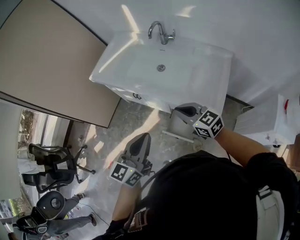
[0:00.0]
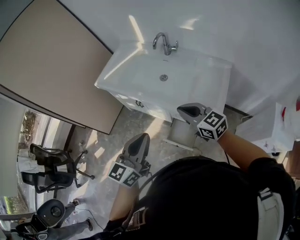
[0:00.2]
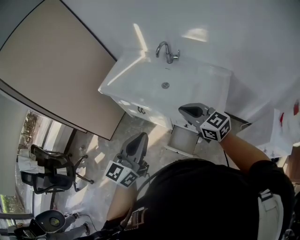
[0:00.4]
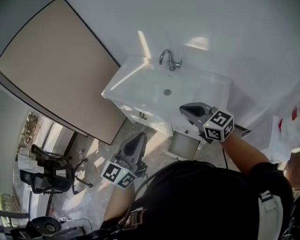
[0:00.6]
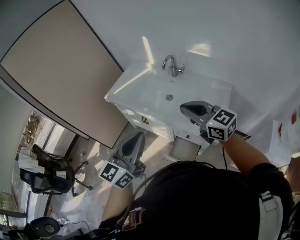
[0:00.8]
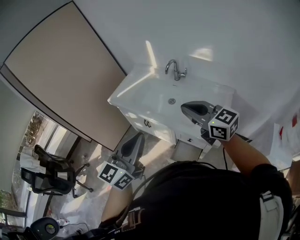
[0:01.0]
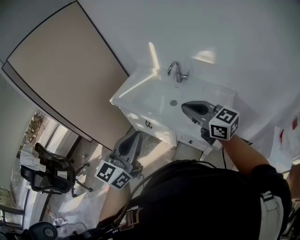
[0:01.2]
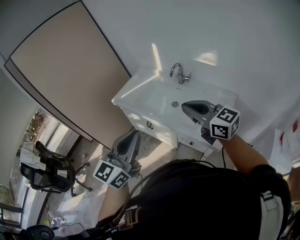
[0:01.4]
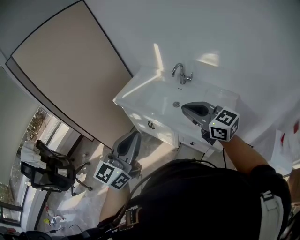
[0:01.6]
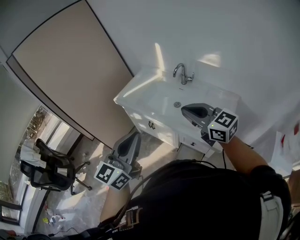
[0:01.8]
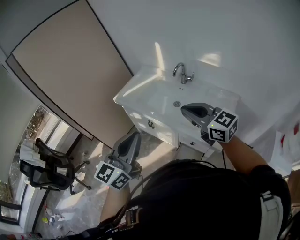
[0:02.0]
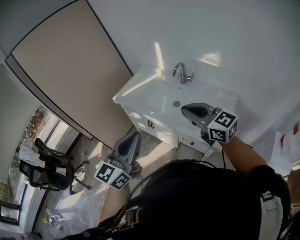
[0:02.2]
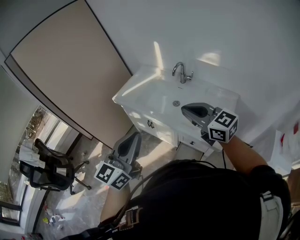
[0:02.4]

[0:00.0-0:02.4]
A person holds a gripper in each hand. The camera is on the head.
0:00.0 to 0:01.2: Both grippers move upward, approximately 20 cm.
0:01.2 to 0:02.4: The grippers move only a little.

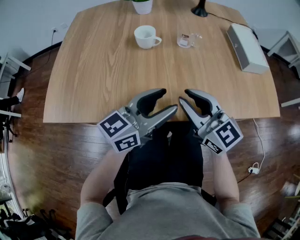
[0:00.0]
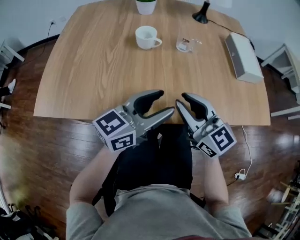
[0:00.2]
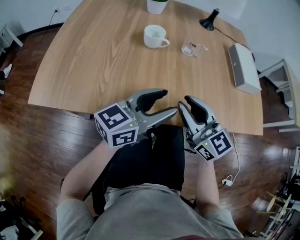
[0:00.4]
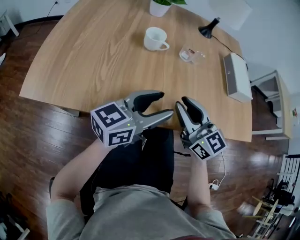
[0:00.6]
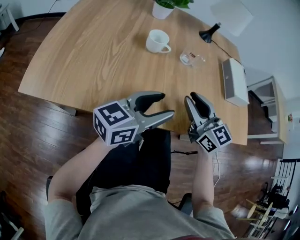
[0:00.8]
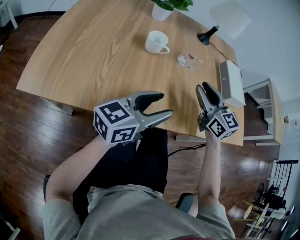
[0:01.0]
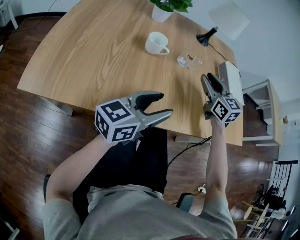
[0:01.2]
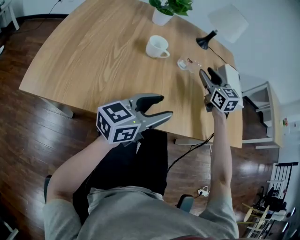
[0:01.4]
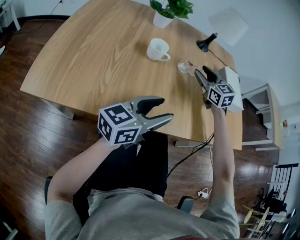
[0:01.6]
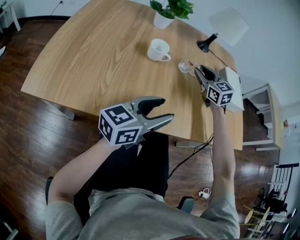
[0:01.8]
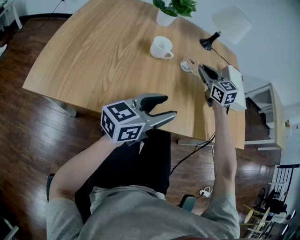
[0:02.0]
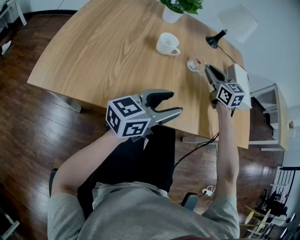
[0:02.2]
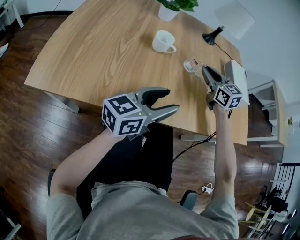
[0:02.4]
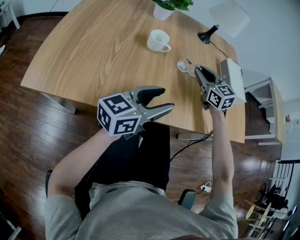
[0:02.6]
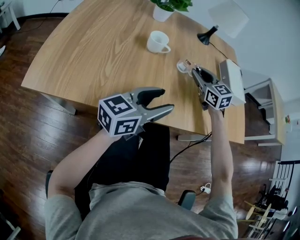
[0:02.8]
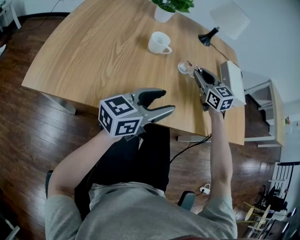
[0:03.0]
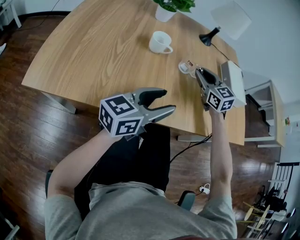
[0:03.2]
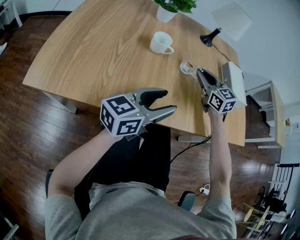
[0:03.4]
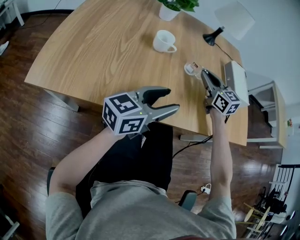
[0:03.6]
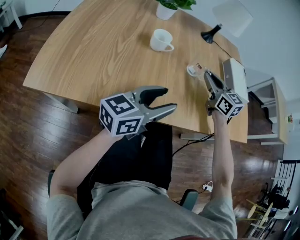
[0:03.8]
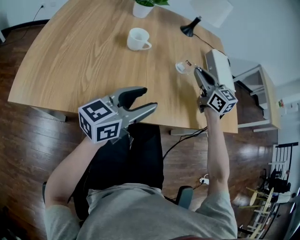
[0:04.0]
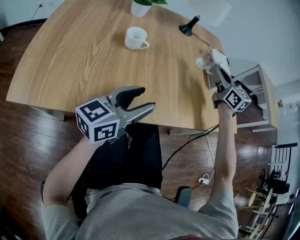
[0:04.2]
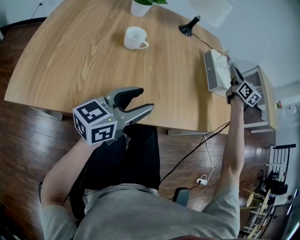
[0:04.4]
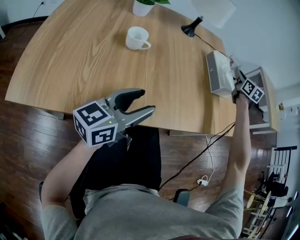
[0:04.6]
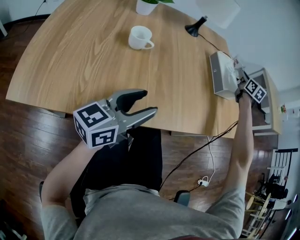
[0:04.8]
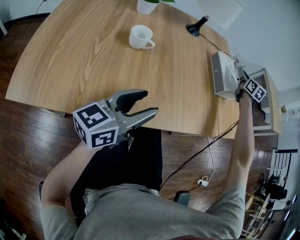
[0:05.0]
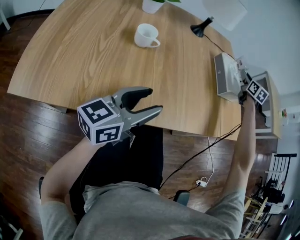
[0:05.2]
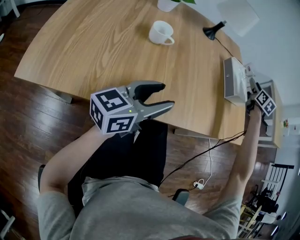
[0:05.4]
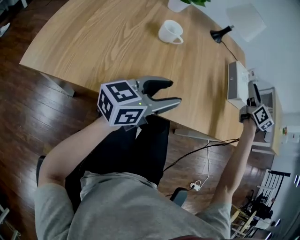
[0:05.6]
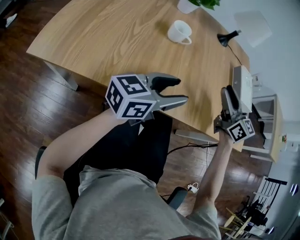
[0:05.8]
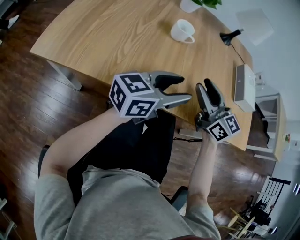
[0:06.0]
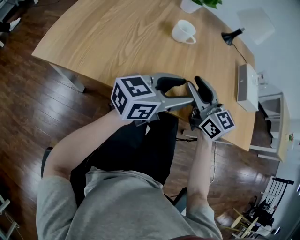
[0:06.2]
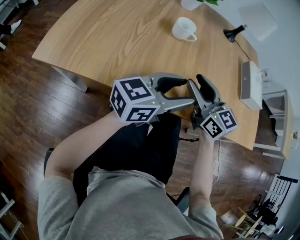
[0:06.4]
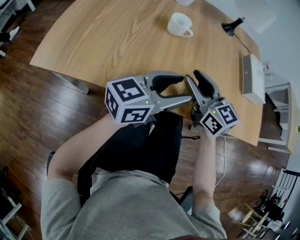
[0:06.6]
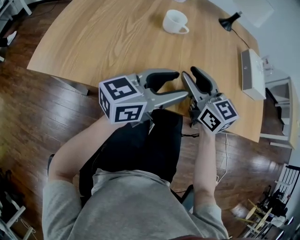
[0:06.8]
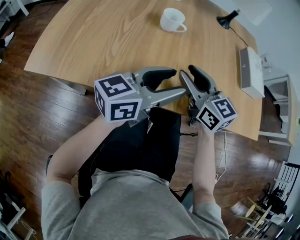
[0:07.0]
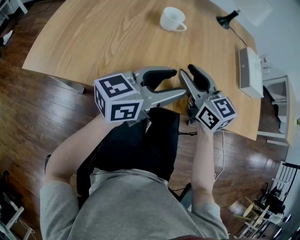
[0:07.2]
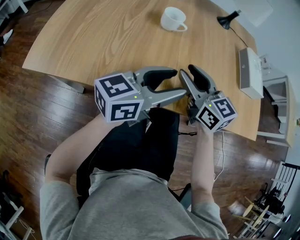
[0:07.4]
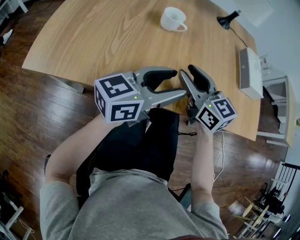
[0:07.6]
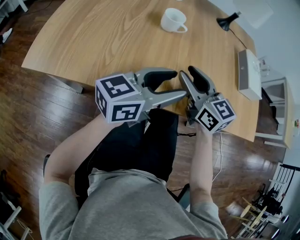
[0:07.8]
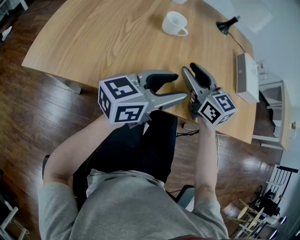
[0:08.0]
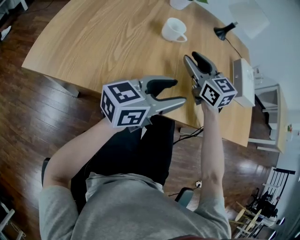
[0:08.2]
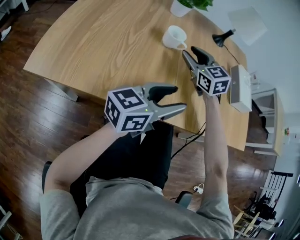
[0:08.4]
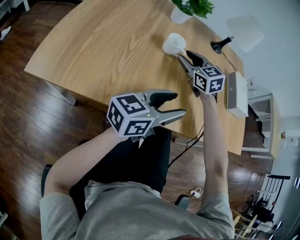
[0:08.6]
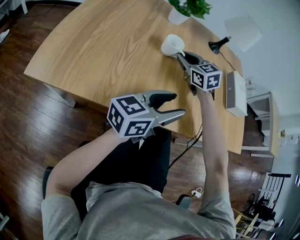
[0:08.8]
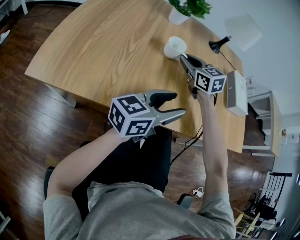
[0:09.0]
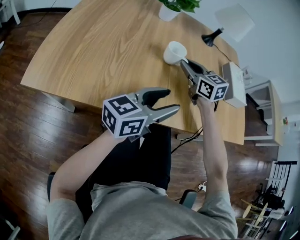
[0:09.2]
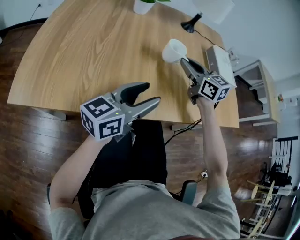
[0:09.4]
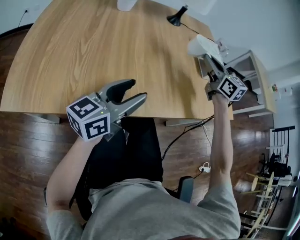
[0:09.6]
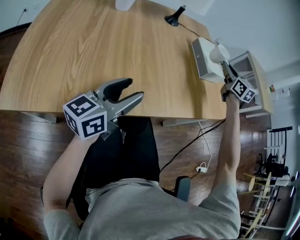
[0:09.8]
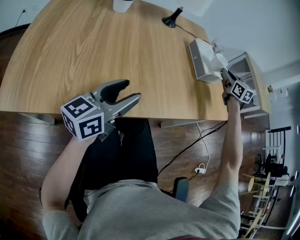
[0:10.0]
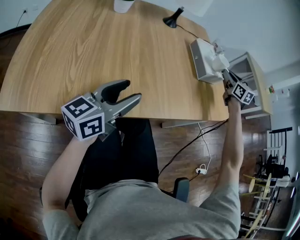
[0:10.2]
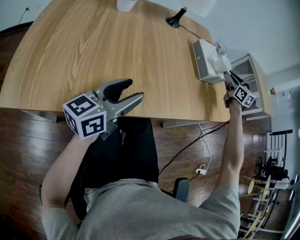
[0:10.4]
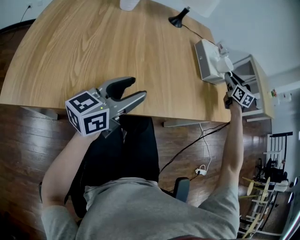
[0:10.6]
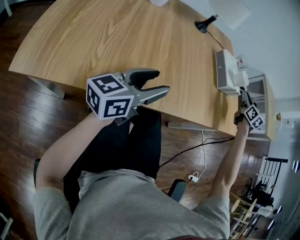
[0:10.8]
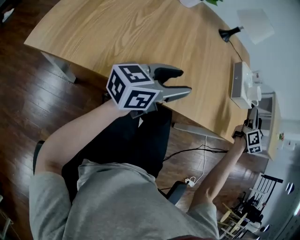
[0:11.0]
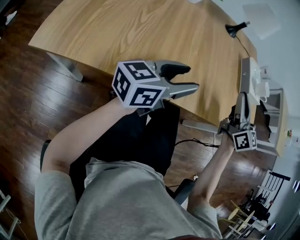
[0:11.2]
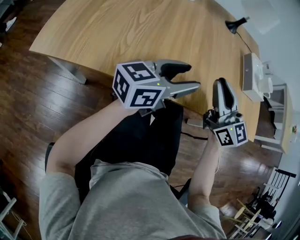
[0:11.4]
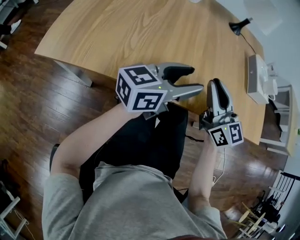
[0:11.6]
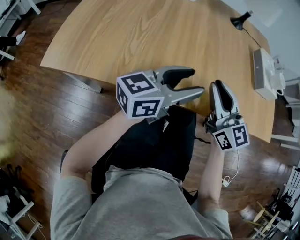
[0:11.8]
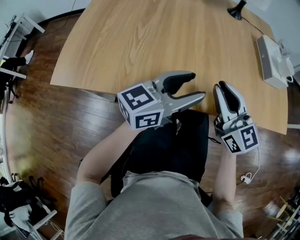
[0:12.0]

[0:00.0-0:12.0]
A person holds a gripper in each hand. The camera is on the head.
0:00.0 to 0:01.6: The right gripper travels forward by about 25 cm, changes its angle by approximately 20 degrees, and opens its fingers.
0:01.6 to 0:03.0: The right gripper closes.
0:03.0 to 0:04.4: The right gripper moves to the right and upward, roughly 25 cm, and swivels some 30 degrees.
0:04.4 to 0:06.0: The right gripper shifts by approximately 40 cm, turns by roughly 40 degrees, and opens its fingers.
0:06.0 to 0:07.6: The right gripper ends up approximately 5 cm from where it was.
0:07.6 to 0:09.0: The right gripper moves forward, about 15 cm, and closes.
0:09.0 to 0:10.4: The right gripper travels to the right by about 50 cm, and changes its angle by roughly 40 degrees.
0:10.4 to 0:12.0: The right gripper shifts roughly 40 cm to the left and backward, and swivels approximately 40 degrees.

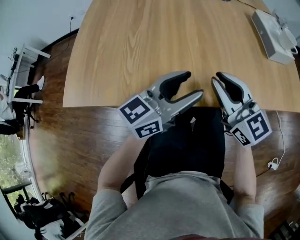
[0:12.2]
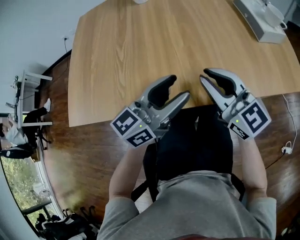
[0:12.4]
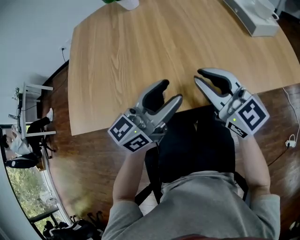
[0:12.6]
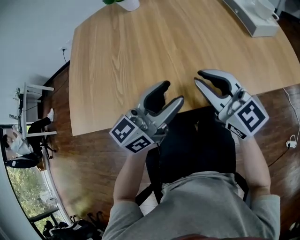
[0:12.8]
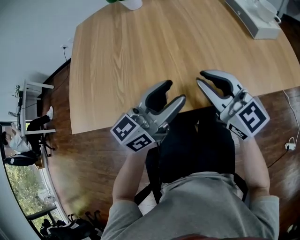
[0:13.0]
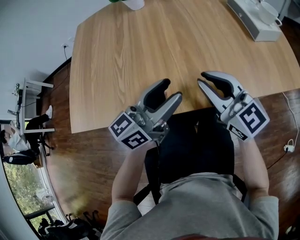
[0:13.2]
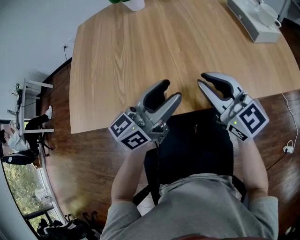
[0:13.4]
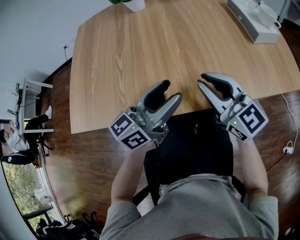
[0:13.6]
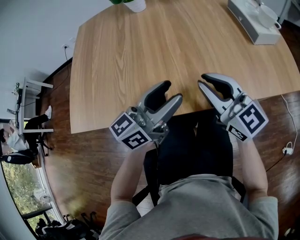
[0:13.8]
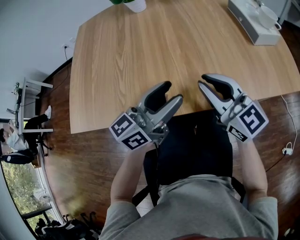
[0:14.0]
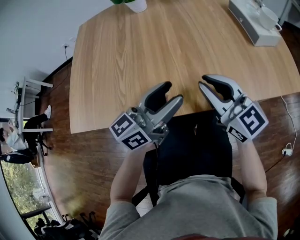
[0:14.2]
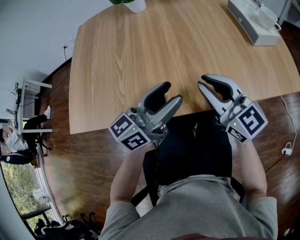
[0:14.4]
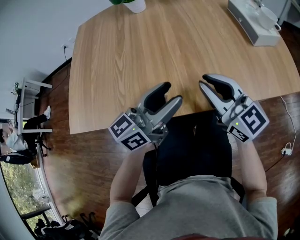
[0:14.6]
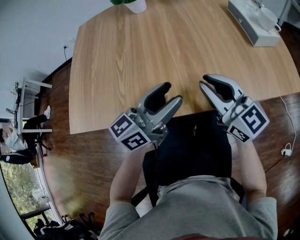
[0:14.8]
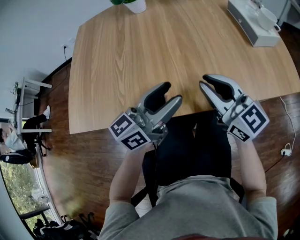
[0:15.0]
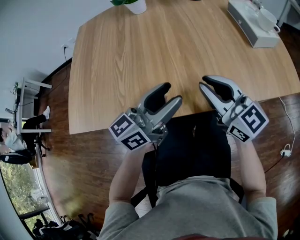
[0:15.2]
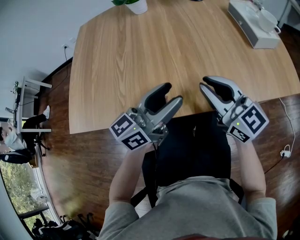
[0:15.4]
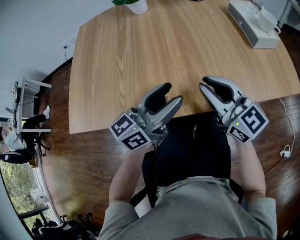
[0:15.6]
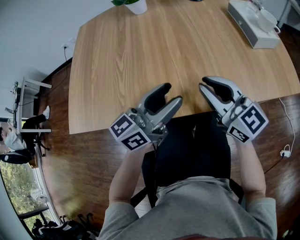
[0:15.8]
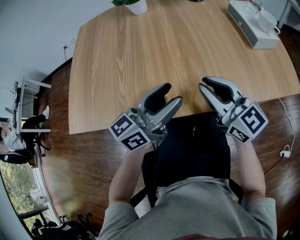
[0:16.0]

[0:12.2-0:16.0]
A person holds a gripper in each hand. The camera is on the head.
0:12.2 to 0:13.4: The grippers move only a little.
0:13.4 to 0:16.0: The two grippers keep their place.

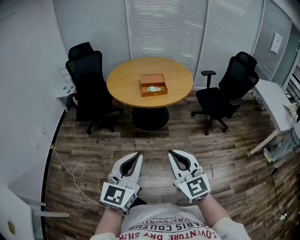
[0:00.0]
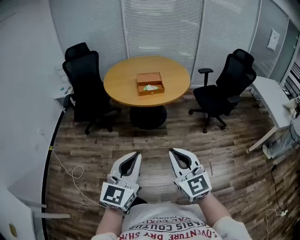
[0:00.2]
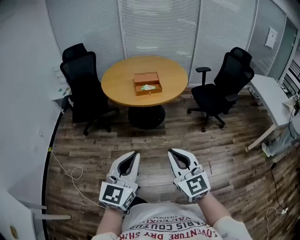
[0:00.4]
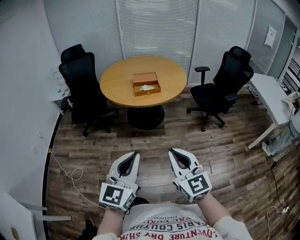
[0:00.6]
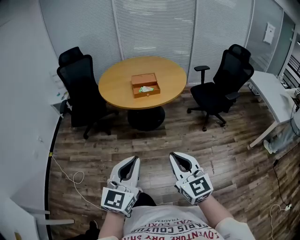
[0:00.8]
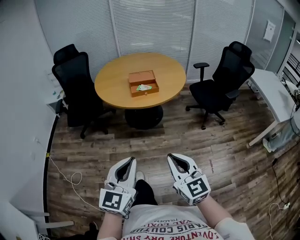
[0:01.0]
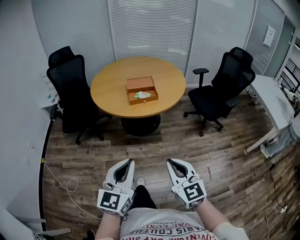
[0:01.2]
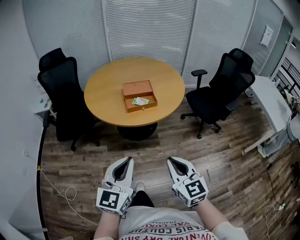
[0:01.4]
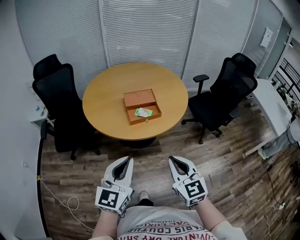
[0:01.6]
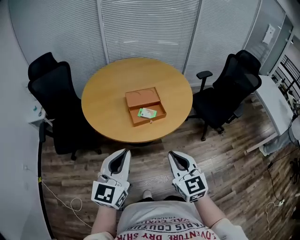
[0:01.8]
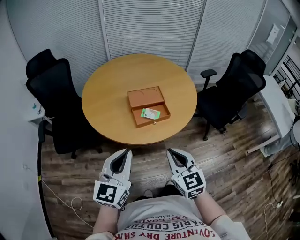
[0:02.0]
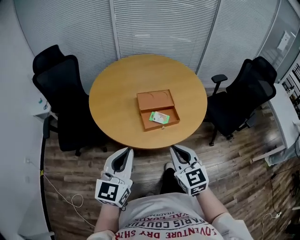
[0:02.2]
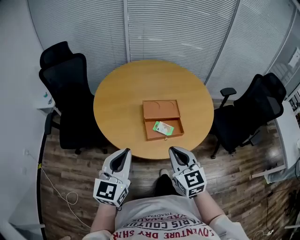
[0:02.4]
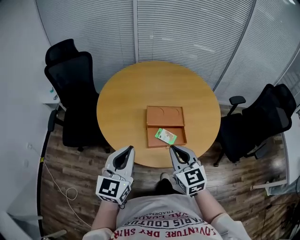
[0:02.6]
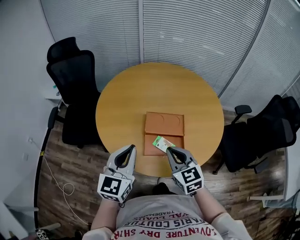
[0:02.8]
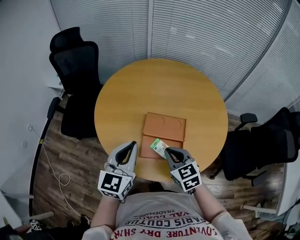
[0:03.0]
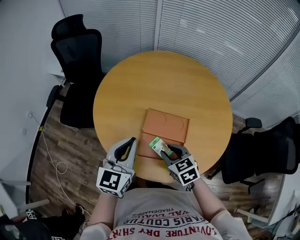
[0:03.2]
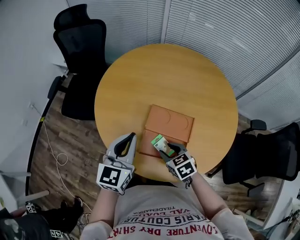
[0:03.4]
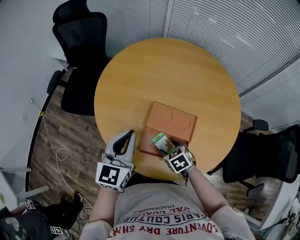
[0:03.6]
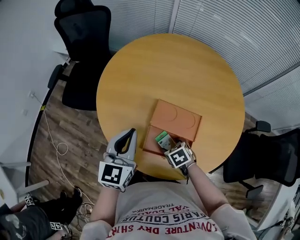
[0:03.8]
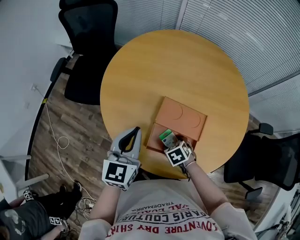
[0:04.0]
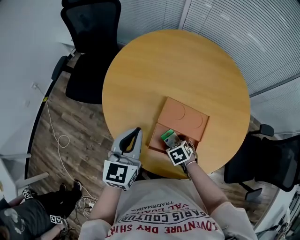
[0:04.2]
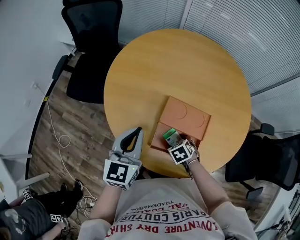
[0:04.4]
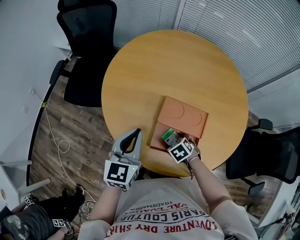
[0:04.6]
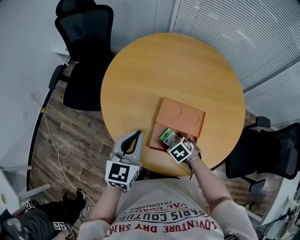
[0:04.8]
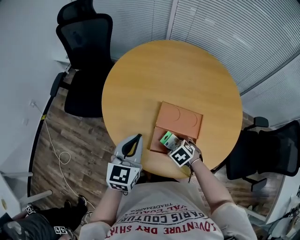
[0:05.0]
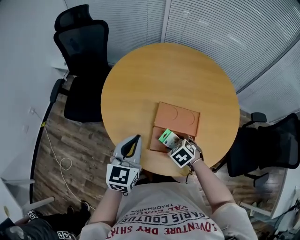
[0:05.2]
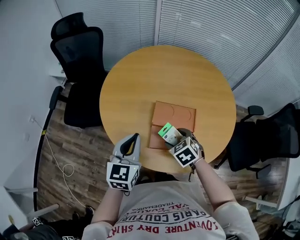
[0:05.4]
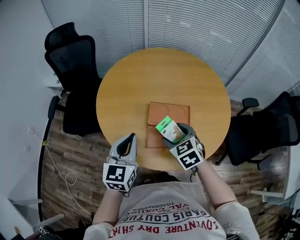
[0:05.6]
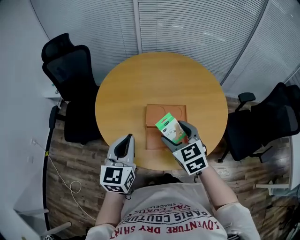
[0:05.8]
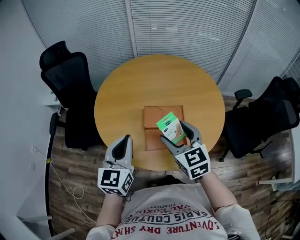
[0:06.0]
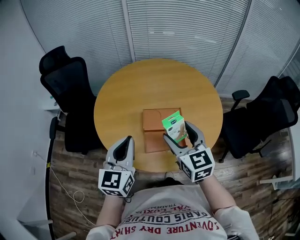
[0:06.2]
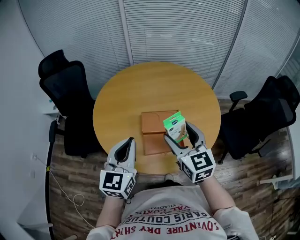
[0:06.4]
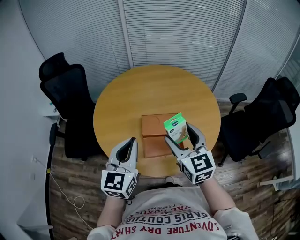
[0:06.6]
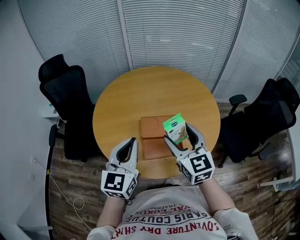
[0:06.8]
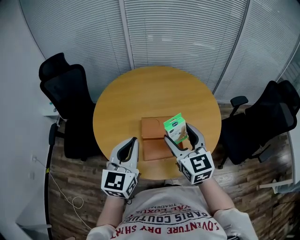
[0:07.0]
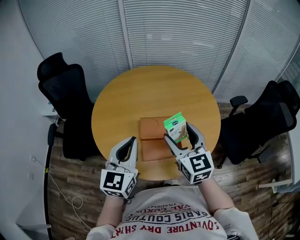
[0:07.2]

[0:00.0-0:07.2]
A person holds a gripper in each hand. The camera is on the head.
0:00.0 to 0:01.4: Both grippers travel together forward, some 25 cm.
0:01.4 to 0:02.8: The pair of grippers is taken forward, approximately 50 cm. The right gripper changes its angle by approximately 20 degrees.
0:02.8 to 0:04.4: The left gripper changes place by roughly 15 cm, and changes its angle by some 20 degrees. Meanwhile the right gripper shifts roughly 25 cm downward, angles its fingers downward, by some 50 degrees, and opens its fingers.
0:04.4 to 0:05.8: The left gripper goes some 10 cm upward. Meanwhile the right gripper moves upward, roughly 30 cm, and angles its fingers upward, by roughly 40 degrees.
0:05.8 to 0:07.2: The left gripper moves upward, about 5 cm. The right gripper heads upward, covering roughly 10 cm, and swivels some 30 degrees.
